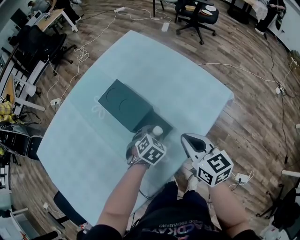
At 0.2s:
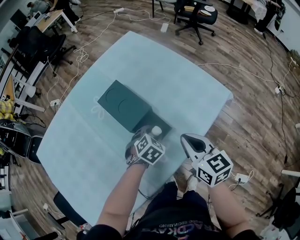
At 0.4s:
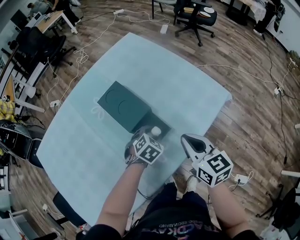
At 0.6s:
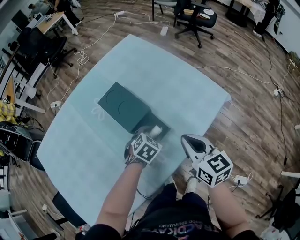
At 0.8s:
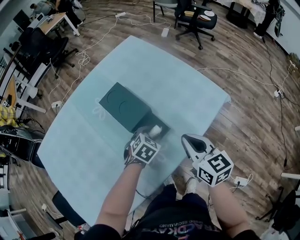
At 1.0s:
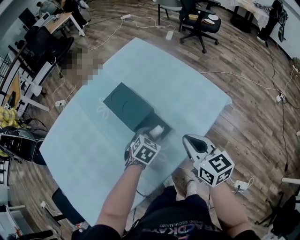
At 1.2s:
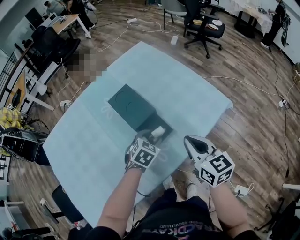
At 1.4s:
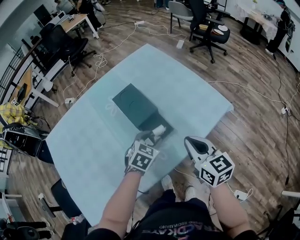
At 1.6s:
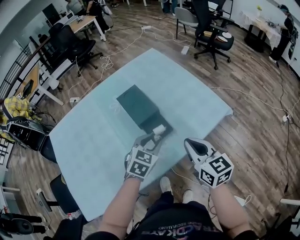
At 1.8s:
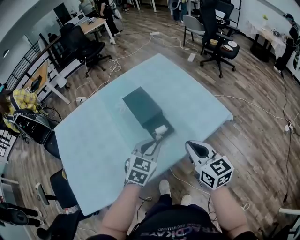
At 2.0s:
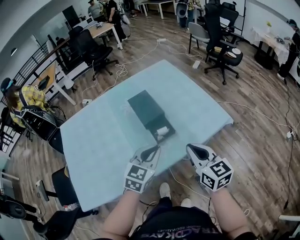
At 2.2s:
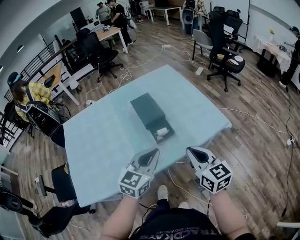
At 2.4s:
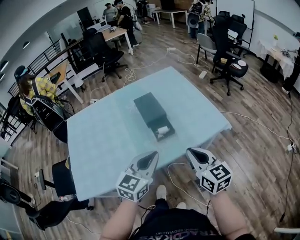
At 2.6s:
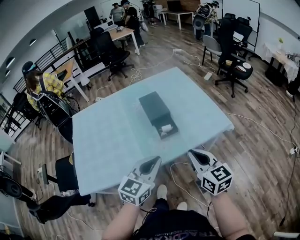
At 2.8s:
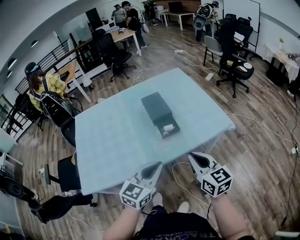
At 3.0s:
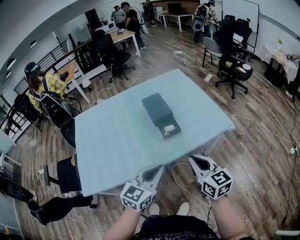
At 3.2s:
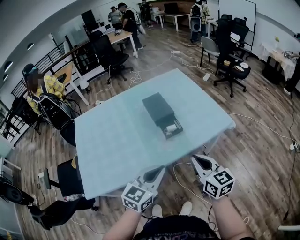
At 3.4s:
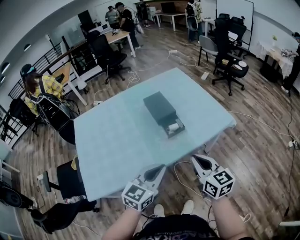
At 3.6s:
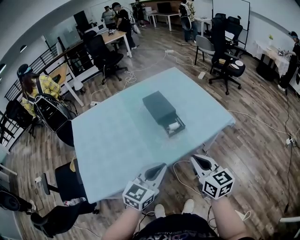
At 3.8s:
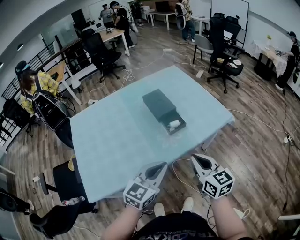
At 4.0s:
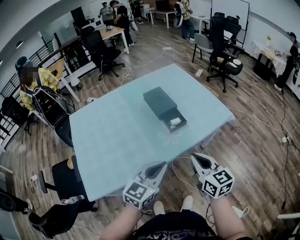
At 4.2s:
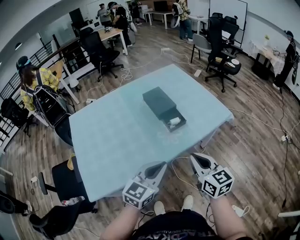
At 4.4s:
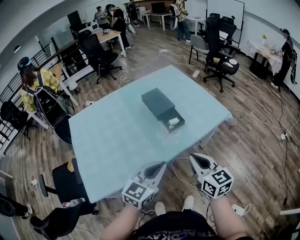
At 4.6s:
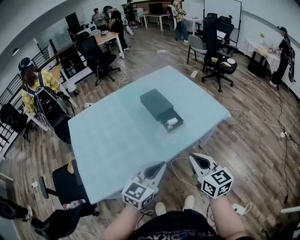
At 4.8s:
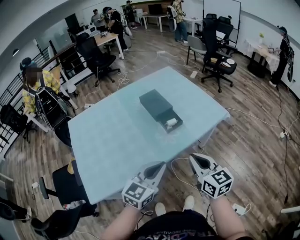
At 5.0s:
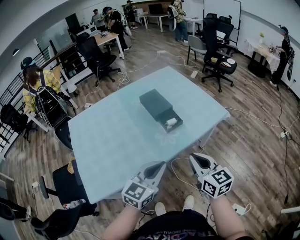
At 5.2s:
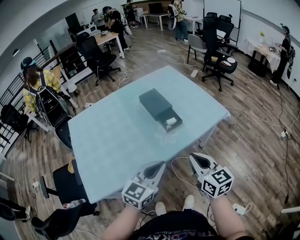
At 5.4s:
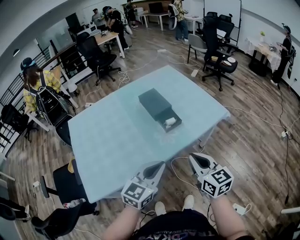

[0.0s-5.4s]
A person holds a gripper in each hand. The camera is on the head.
0.0s to 1.4s: The left gripper moves upward, roughly 10 cm, and turns by approximately 20 degrees. Meanwhile the right gripper moves some 5 cm.
1.4s to 2.8s: The left gripper travels backward and upward by approximately 35 cm, angles its fingers upward, by about 30 degrees, and closes; the right gripper is displaced backward by approximately 20 cm.
2.8s to 4.0s: Both grippers move to the left, roughly 10 cm.
4.0s to 5.4s: The grippers move only a little.

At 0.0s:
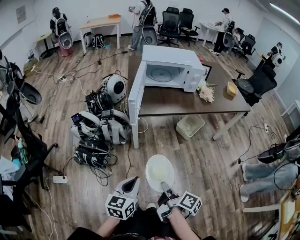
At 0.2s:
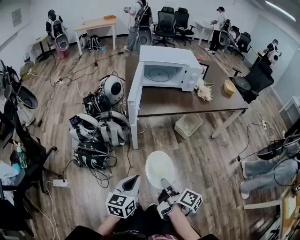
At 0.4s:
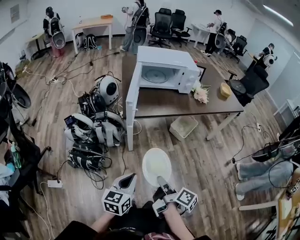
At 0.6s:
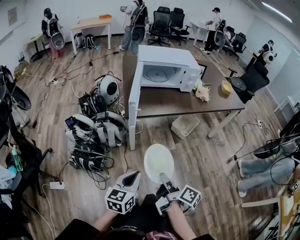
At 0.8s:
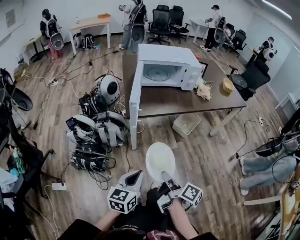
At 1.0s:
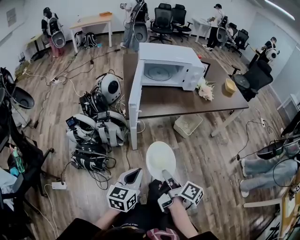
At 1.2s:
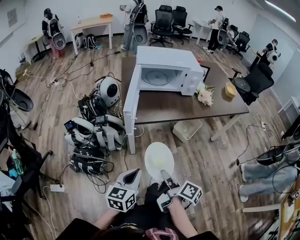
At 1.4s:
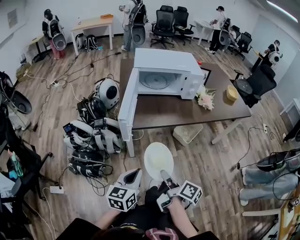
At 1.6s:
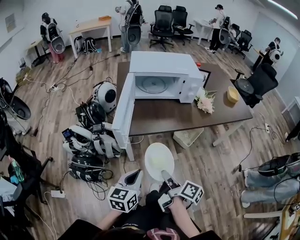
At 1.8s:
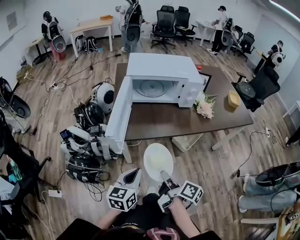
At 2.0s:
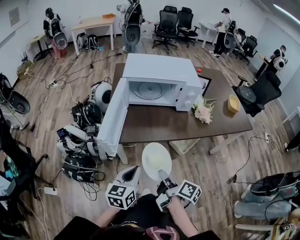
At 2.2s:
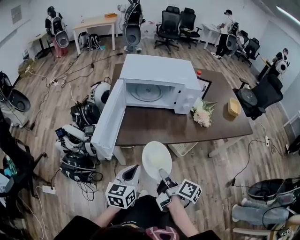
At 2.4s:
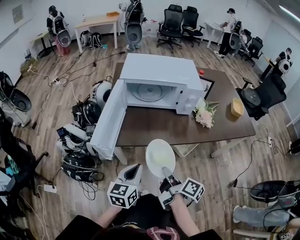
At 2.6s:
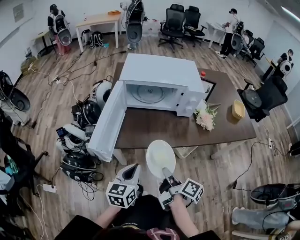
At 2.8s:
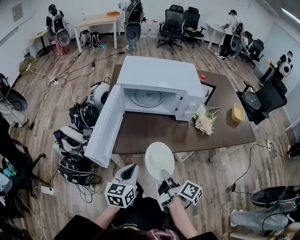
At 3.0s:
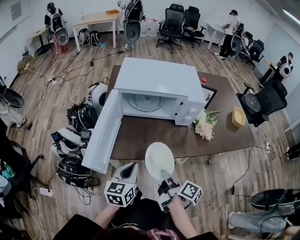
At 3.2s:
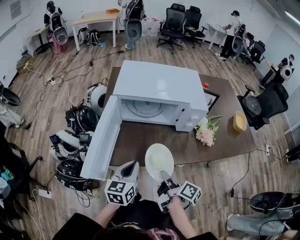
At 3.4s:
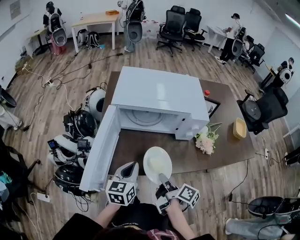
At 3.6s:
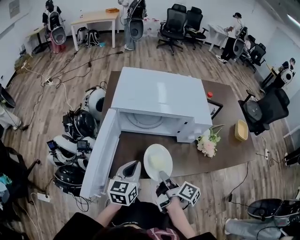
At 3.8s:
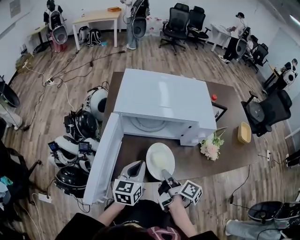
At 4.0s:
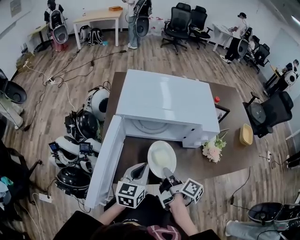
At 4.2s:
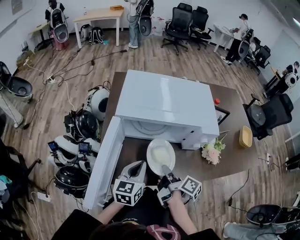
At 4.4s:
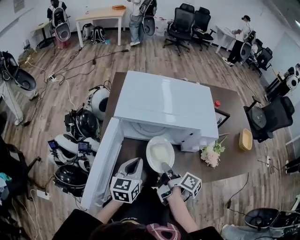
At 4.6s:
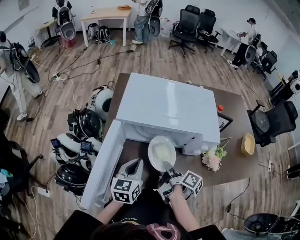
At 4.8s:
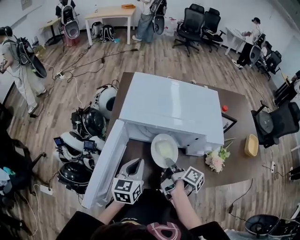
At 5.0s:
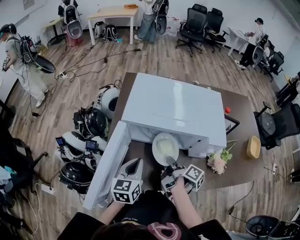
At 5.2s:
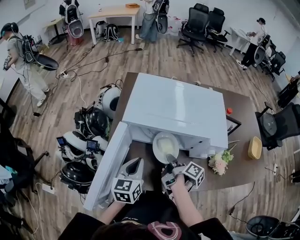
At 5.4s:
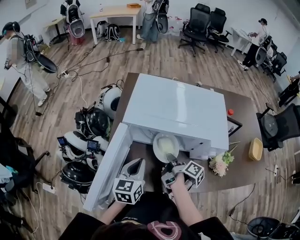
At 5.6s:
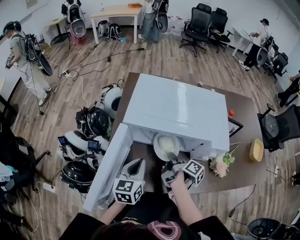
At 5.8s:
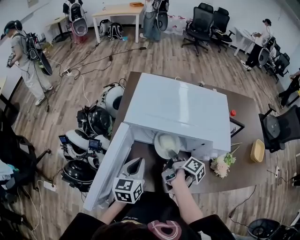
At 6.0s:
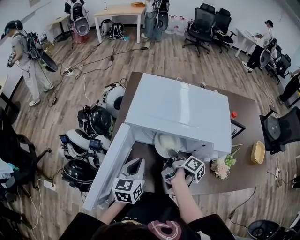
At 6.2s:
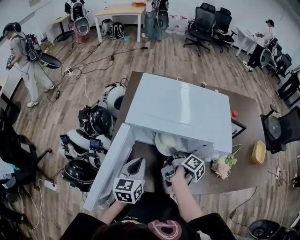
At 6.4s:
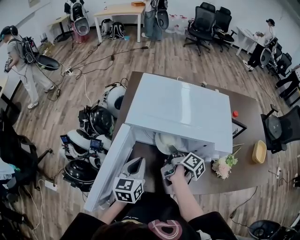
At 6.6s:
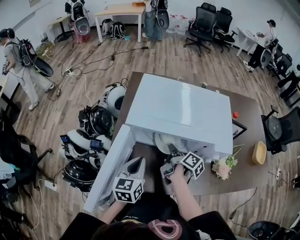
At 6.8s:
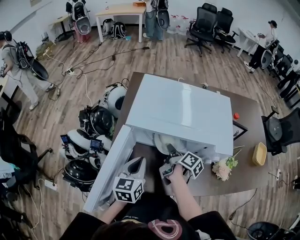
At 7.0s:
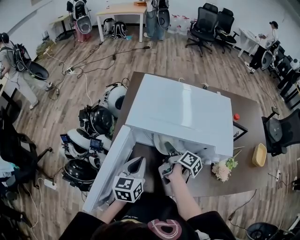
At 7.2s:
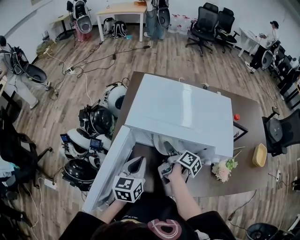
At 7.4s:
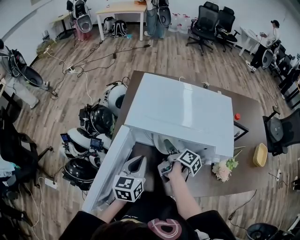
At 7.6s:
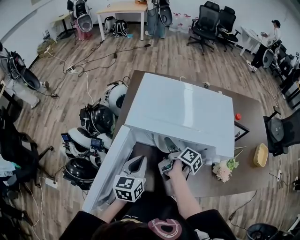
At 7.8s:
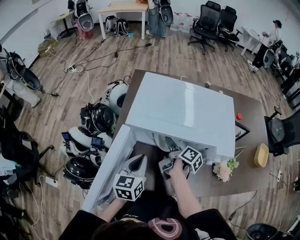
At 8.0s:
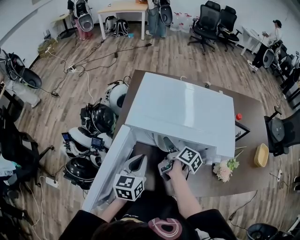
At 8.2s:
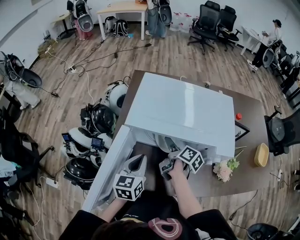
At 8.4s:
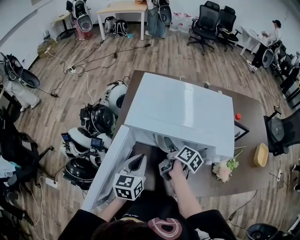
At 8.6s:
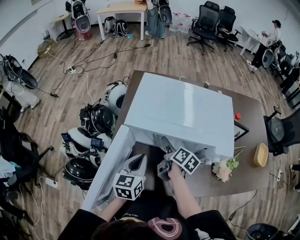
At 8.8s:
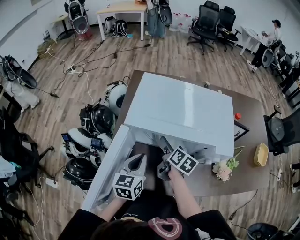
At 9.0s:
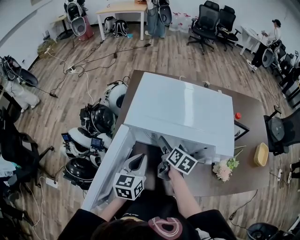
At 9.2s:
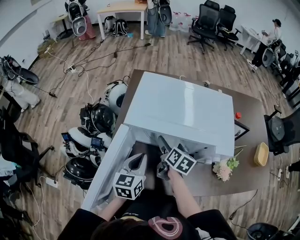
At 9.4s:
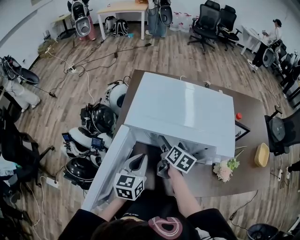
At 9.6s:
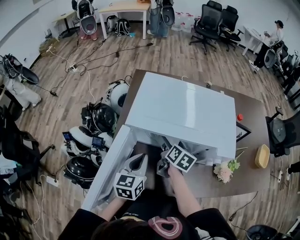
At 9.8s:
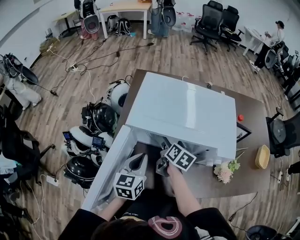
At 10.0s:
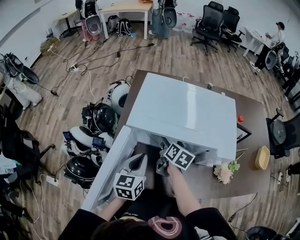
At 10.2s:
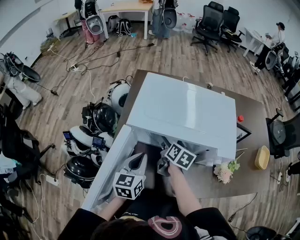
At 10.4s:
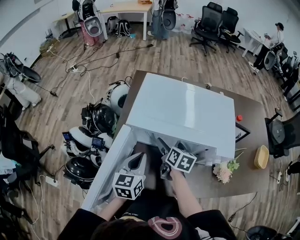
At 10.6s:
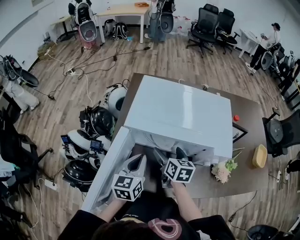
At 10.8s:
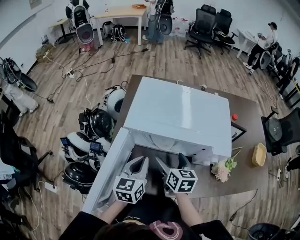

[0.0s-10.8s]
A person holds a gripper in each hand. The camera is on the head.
0.0s to 1.6s: The grippers both shift forward by approximately 20 cm.
1.6s to 3.0s: The right gripper shifts roughly 20 cm forward and to the right. Meanwhile the left gripper goes some 20 cm forward.
3.0s to 4.6s: Both grippers move forward, about 20 cm.
4.6s to 6.2s: The right gripper moves forward, roughly 10 cm.
6.2s to 7.8s: The right gripper moves some 5 cm, and opens its fingers.
7.8s to 9.2s: The right gripper turns by some 40 degrees, and opens up.
9.2s to 10.8s: The right gripper goes roughly 5 cm backward, and swivels about 20 degrees.

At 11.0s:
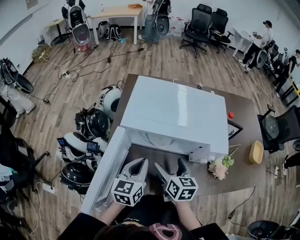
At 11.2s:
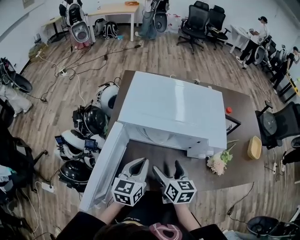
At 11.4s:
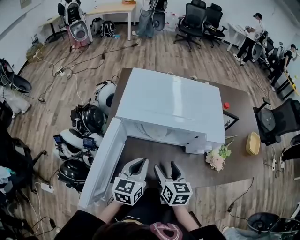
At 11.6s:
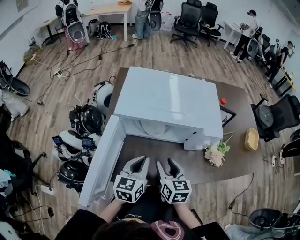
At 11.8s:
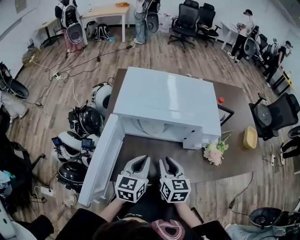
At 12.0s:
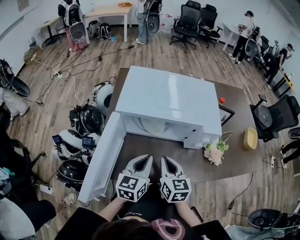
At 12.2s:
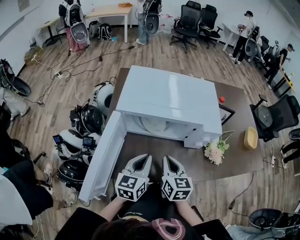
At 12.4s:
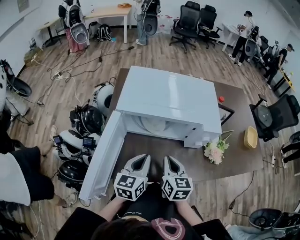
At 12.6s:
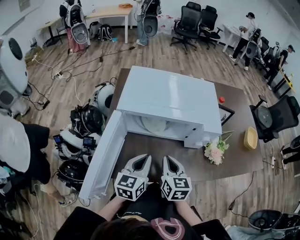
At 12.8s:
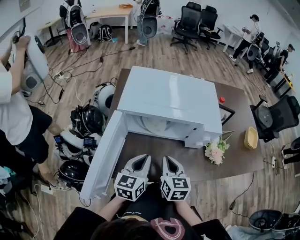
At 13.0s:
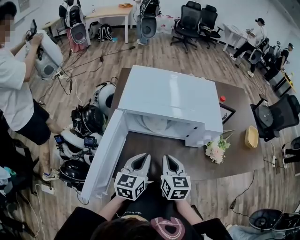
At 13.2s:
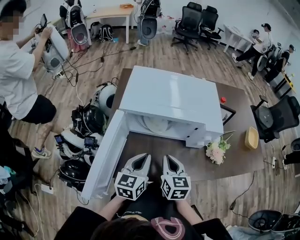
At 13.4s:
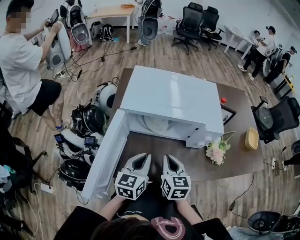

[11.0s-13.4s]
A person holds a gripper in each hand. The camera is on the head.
11.0s to 12.2s: The right gripper goes some 5 cm backward, and closes its fingers, while the left gripper shifts by approximately 5 cm.
12.2s to 13.4s: Both grippers stay about where they are.

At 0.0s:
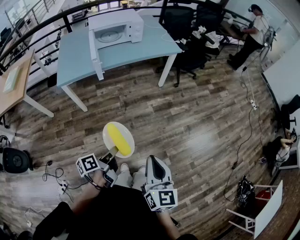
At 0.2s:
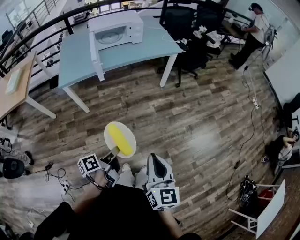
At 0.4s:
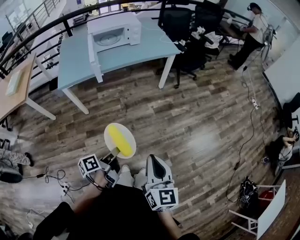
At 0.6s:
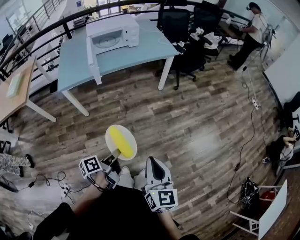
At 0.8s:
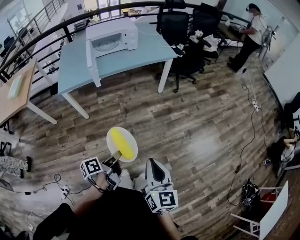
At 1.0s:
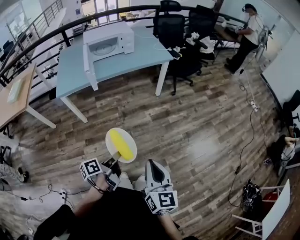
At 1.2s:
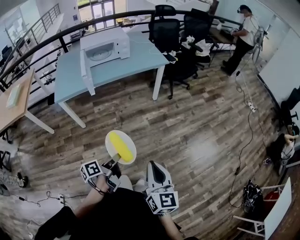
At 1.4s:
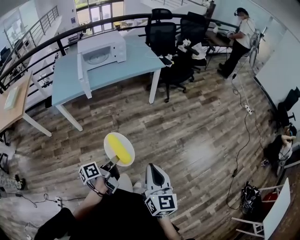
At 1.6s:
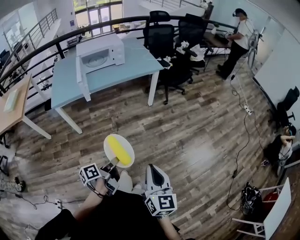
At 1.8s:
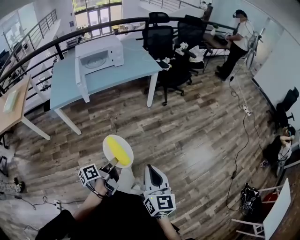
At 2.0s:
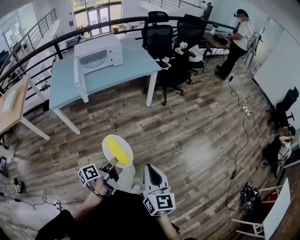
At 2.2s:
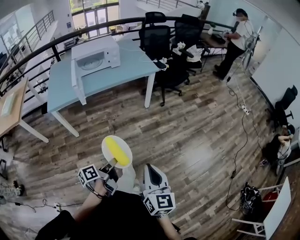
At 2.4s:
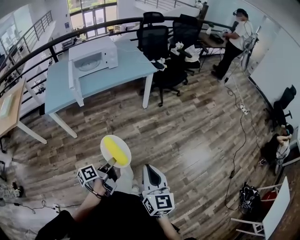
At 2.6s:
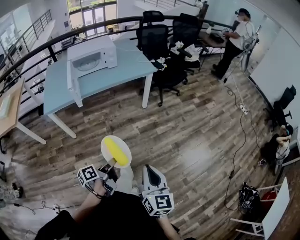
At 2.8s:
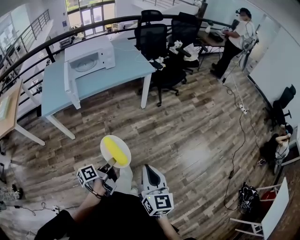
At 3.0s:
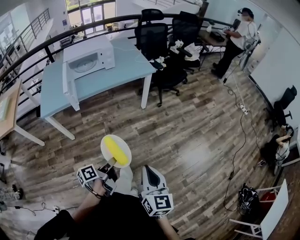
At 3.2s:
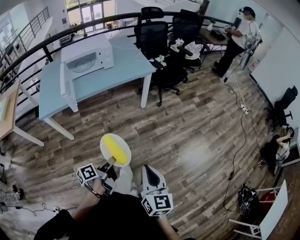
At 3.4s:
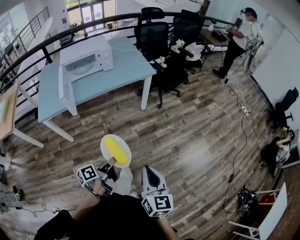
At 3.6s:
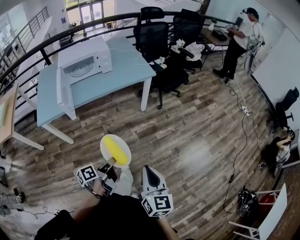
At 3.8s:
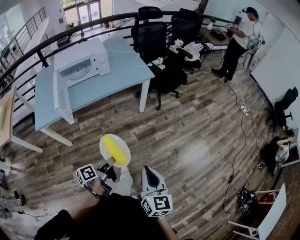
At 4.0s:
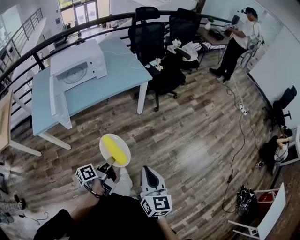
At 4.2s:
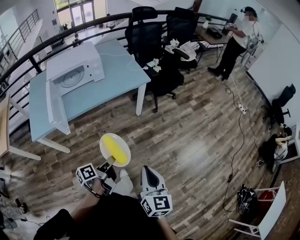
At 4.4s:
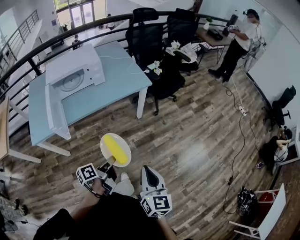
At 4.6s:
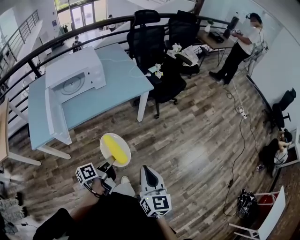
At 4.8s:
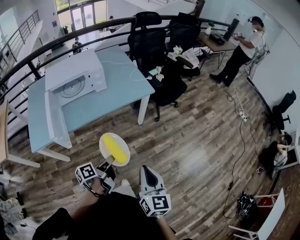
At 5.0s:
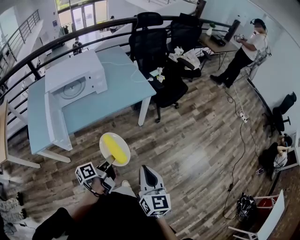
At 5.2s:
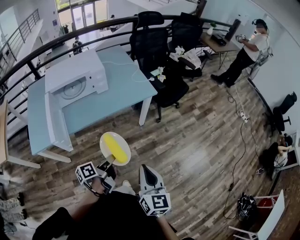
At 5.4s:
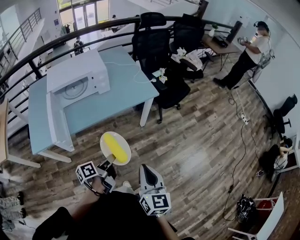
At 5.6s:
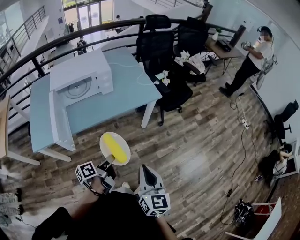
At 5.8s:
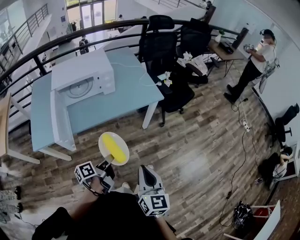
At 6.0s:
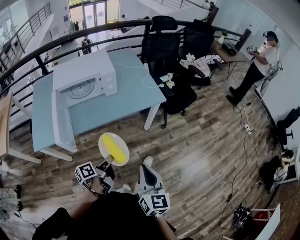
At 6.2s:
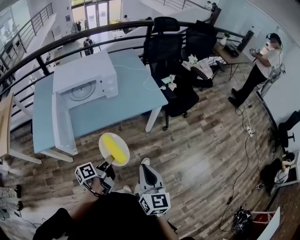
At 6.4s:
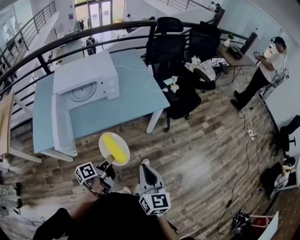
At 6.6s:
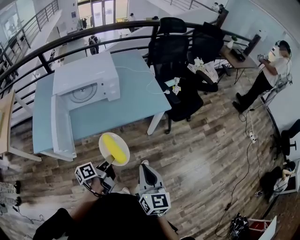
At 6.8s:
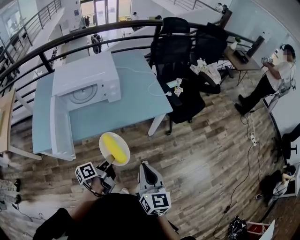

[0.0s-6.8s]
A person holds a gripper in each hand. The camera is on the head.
0.0s to 1.4s: The right gripper shifts by roughly 10 cm.
1.4s to 2.8s: The right gripper shifts by roughly 10 cm.
2.8s to 4.0s: The right gripper shifts by about 15 cm.
4.0s to 5.4s: The right gripper changes place by roughly 20 cm.
5.4s to 6.8s: The right gripper changes place by roughly 15 cm.
